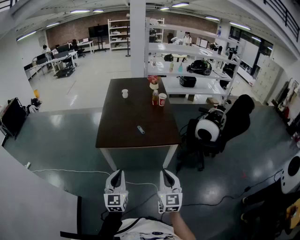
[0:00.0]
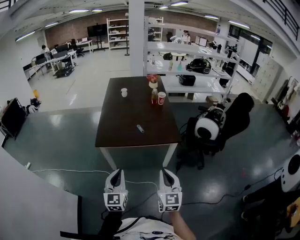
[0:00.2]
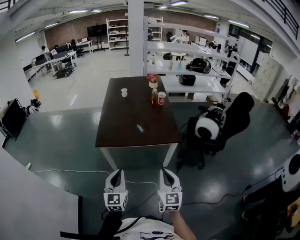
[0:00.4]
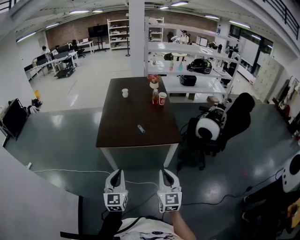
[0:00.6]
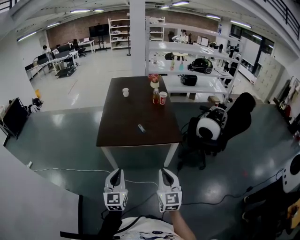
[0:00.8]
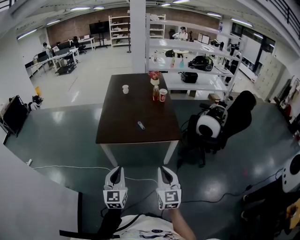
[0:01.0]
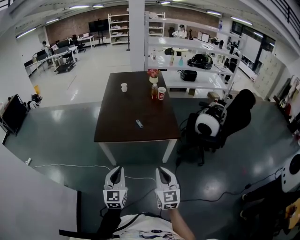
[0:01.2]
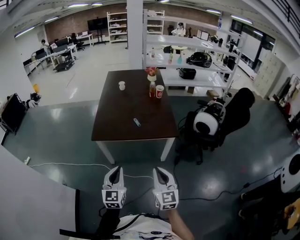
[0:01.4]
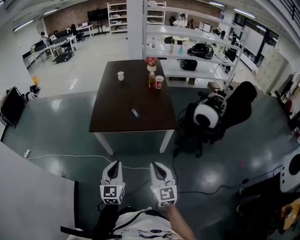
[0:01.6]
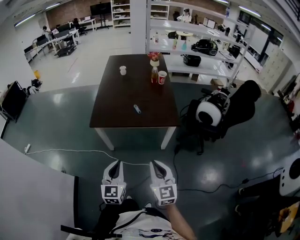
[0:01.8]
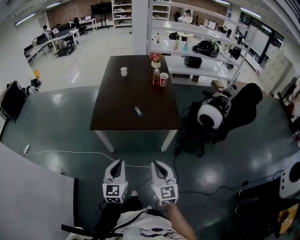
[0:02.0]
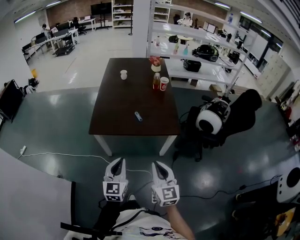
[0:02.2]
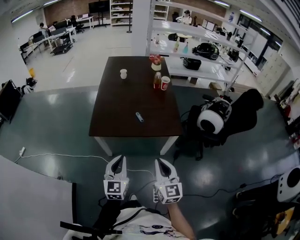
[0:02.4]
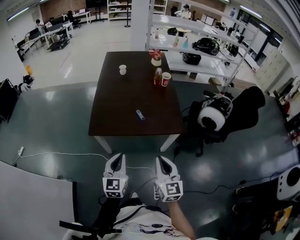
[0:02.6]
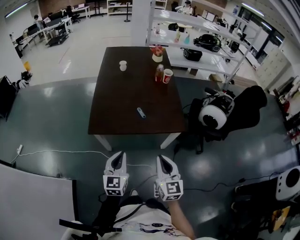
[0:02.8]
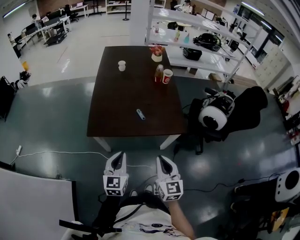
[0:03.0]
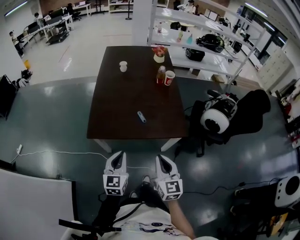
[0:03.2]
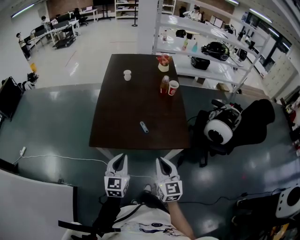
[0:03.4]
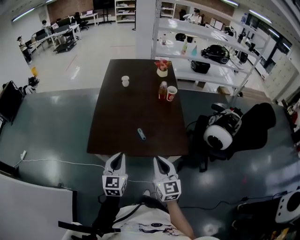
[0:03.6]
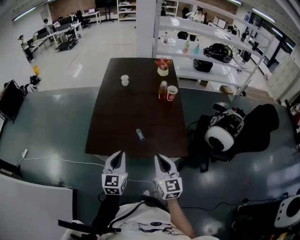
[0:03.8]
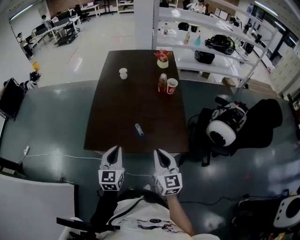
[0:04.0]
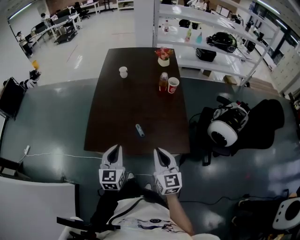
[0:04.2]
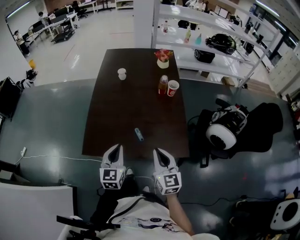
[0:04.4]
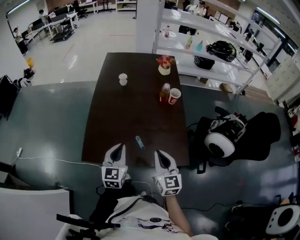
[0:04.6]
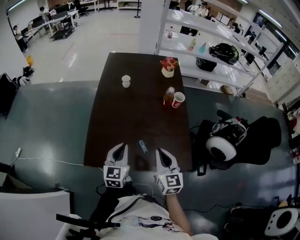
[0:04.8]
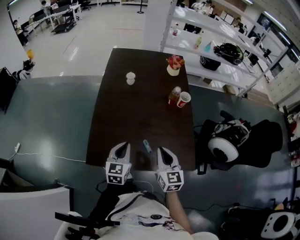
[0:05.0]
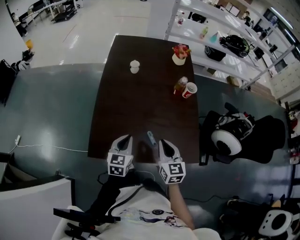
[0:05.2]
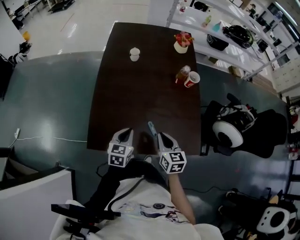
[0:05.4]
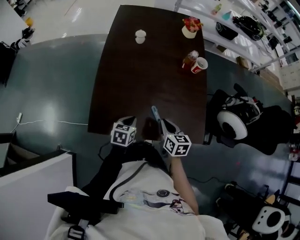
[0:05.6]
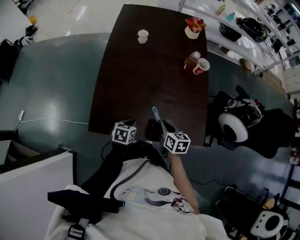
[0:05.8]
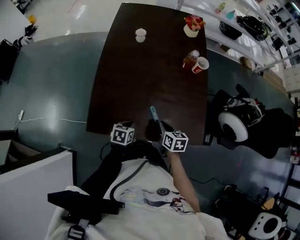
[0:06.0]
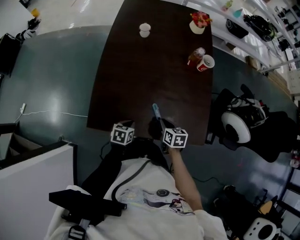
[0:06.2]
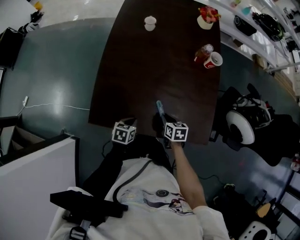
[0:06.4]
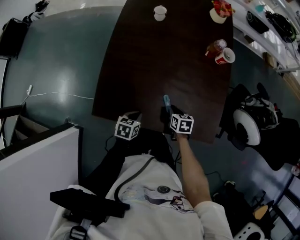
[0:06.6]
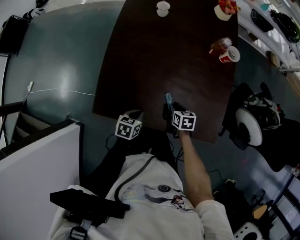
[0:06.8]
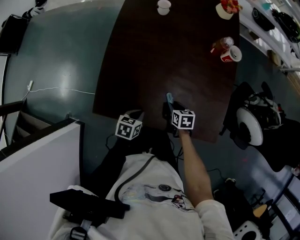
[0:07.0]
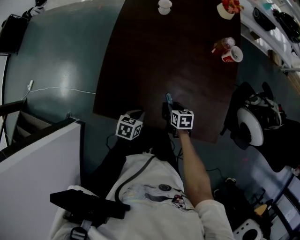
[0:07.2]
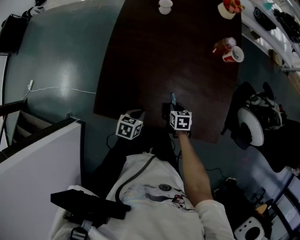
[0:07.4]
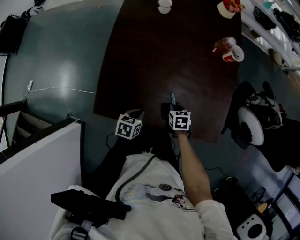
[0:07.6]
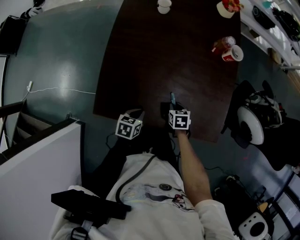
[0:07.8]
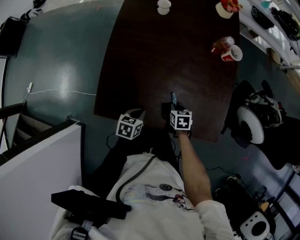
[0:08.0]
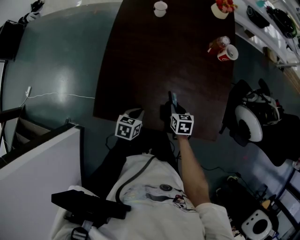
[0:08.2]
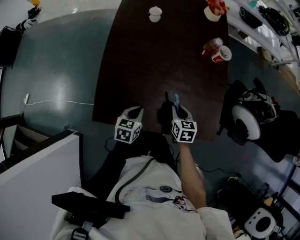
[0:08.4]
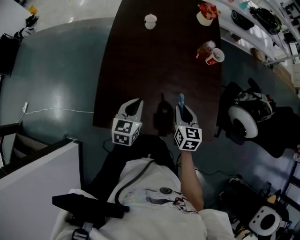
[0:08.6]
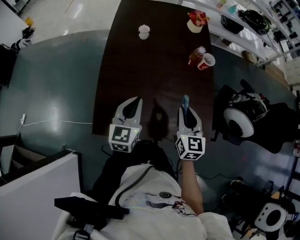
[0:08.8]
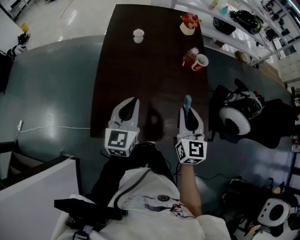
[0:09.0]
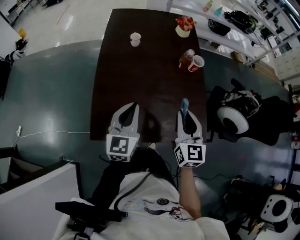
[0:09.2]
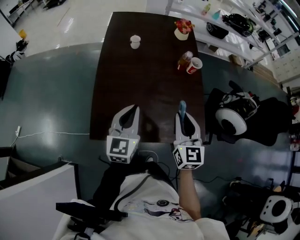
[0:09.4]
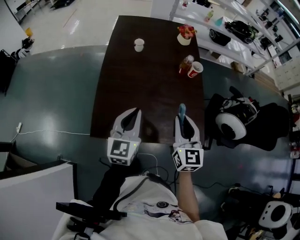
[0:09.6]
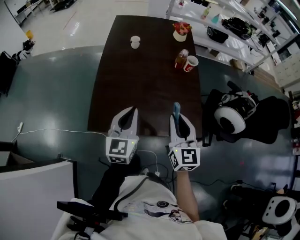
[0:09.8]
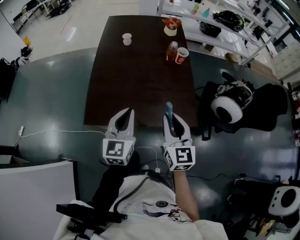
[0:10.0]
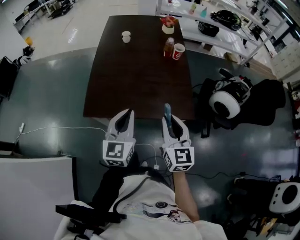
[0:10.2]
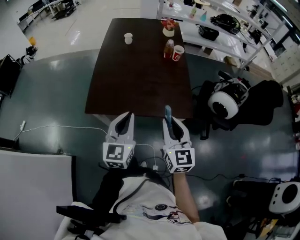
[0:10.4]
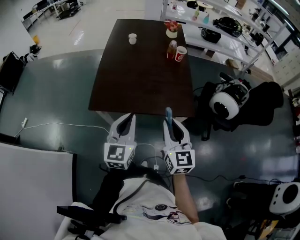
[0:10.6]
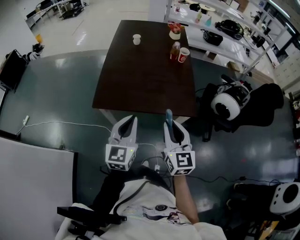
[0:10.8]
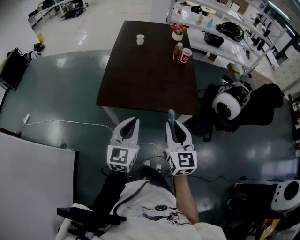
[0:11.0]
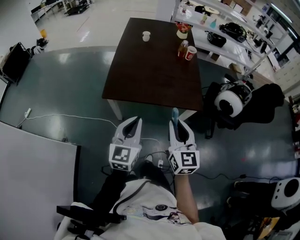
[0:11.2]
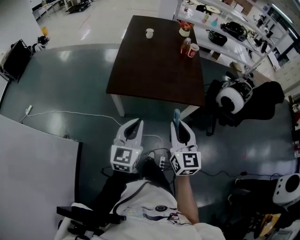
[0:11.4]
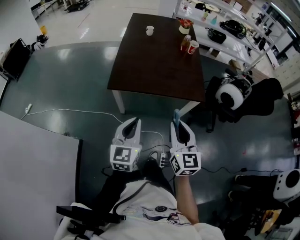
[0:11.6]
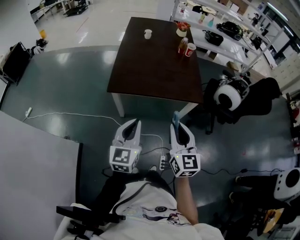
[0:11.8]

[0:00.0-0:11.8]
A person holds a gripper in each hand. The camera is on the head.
0:00.0 to 0:01.4: The grippers make only small movements.
0:01.4 to 0:03.0: The grippers both shift forward by about 15 cm.
0:03.0 to 0:04.4: The grippers both shift forward by some 20 cm.
0:04.4 to 0:06.0: The left gripper moves downward, approximately 20 cm, and tips its fingers downward by approximately 40 degrees. Meanwhile the right gripper shifts about 20 cm downward and forward, and tips its fingers downward by roughly 30 degrees.
0:06.0 to 0:07.4: The right gripper travels downward by roughly 10 cm, and changes its angle by about 20 degrees.
0:07.4 to 0:08.8: The right gripper heads upward, covering roughly 30 cm, and points its fingers roughly 40 degrees further upward. The left gripper moves upward and forward, about 25 cm, and tips its fingers upward by about 40 degrees.
0:08.8 to 0:10.4: Both grippers travel together backward, approximately 25 cm.
0:10.4 to 0:11.8: The two grippers go some 20 cm backward and to the left.

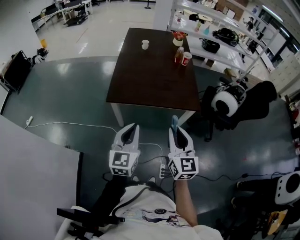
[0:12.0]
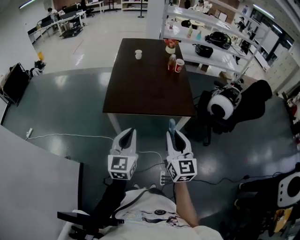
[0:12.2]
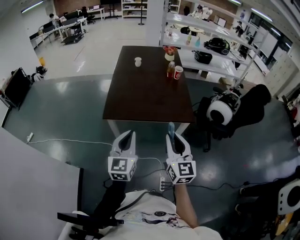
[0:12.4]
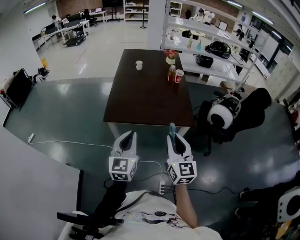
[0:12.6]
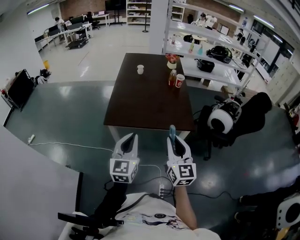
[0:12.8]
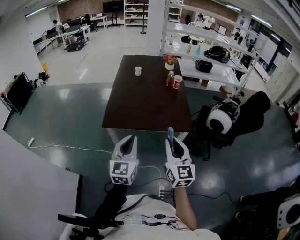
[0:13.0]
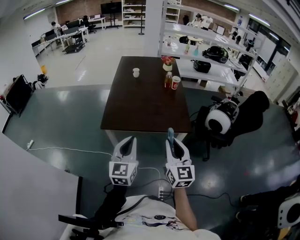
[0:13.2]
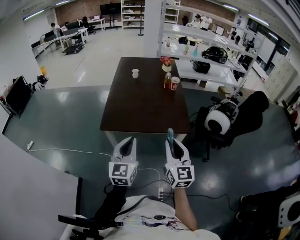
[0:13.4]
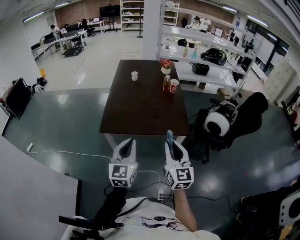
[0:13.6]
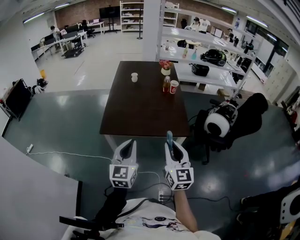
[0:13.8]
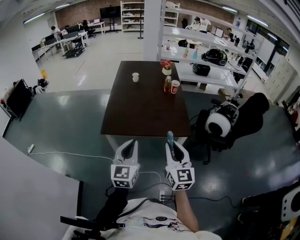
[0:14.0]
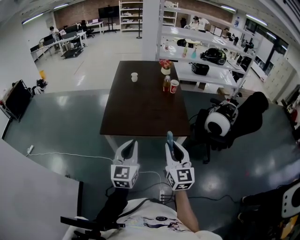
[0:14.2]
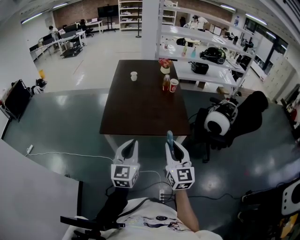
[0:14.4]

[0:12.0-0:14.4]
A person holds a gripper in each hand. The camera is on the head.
0:12.0 to 0:13.2: The right gripper moves roughly 5 cm; the left gripper ends up about 5 cm from where it was.
0:13.2 to 0:14.4: The grippers stay close to where they were, moving slightly.

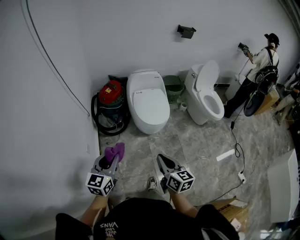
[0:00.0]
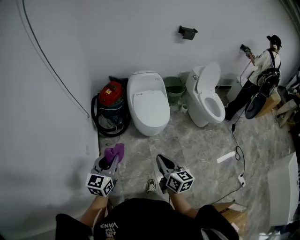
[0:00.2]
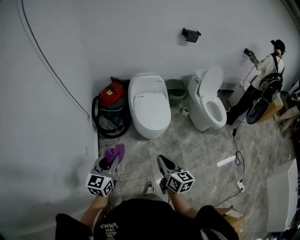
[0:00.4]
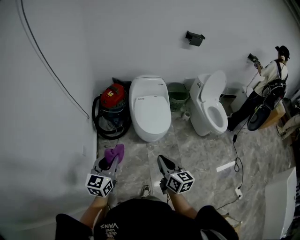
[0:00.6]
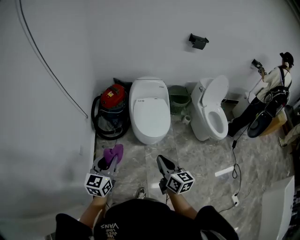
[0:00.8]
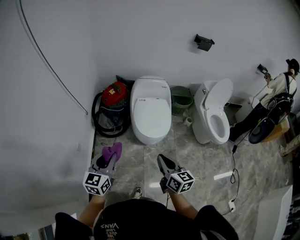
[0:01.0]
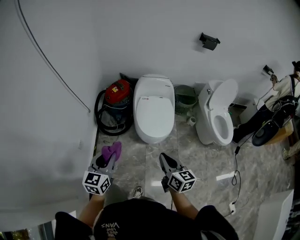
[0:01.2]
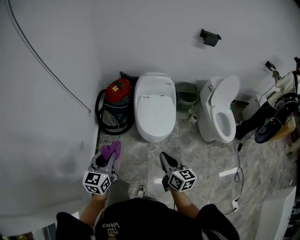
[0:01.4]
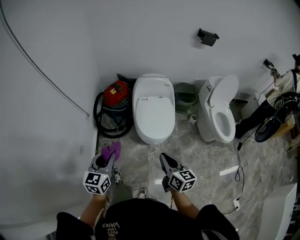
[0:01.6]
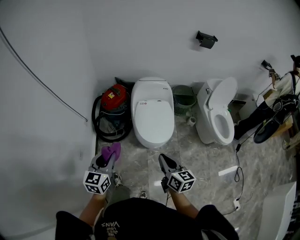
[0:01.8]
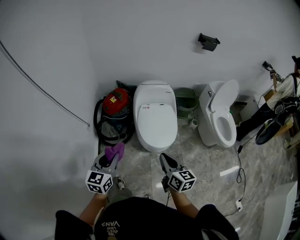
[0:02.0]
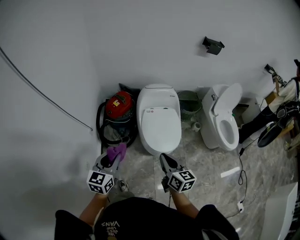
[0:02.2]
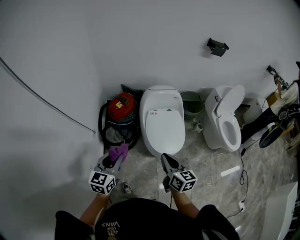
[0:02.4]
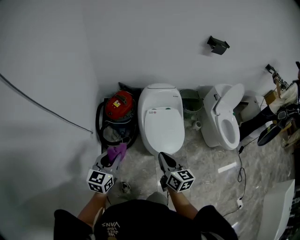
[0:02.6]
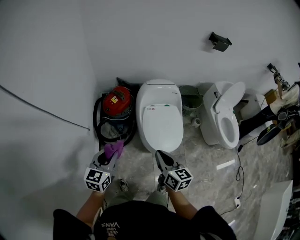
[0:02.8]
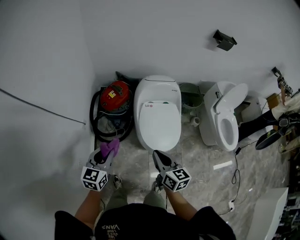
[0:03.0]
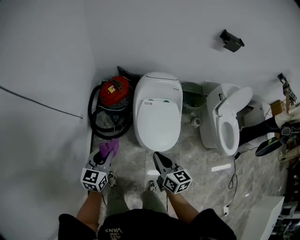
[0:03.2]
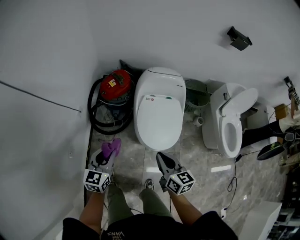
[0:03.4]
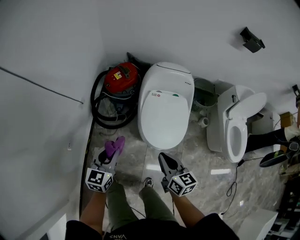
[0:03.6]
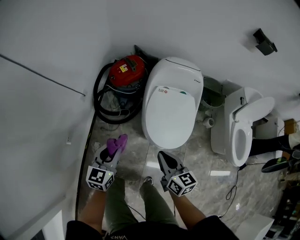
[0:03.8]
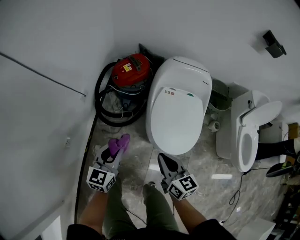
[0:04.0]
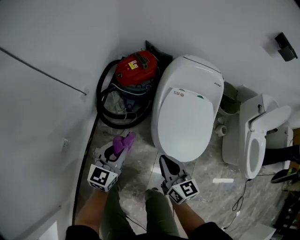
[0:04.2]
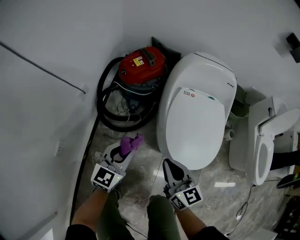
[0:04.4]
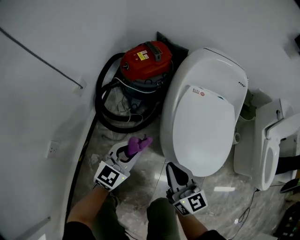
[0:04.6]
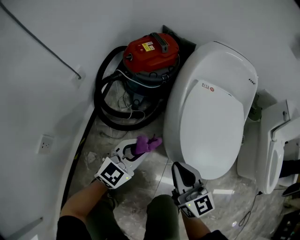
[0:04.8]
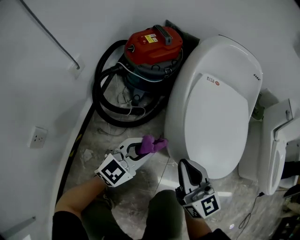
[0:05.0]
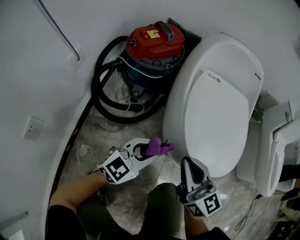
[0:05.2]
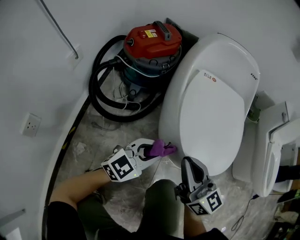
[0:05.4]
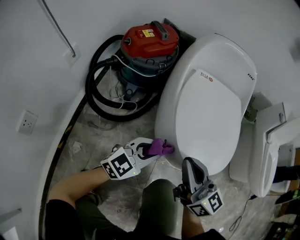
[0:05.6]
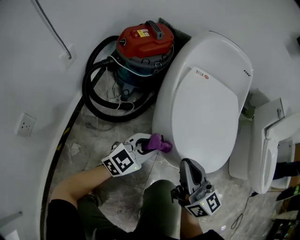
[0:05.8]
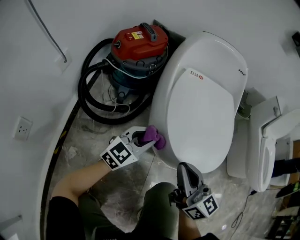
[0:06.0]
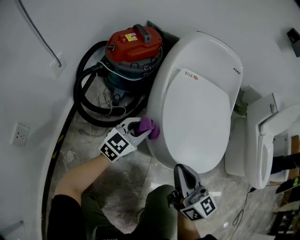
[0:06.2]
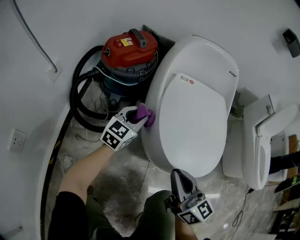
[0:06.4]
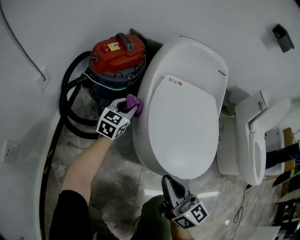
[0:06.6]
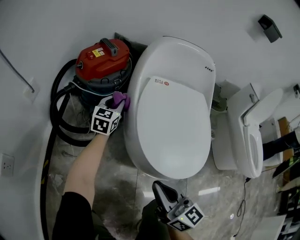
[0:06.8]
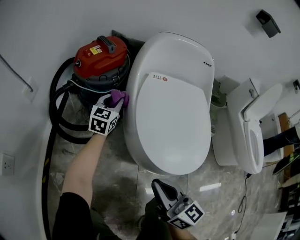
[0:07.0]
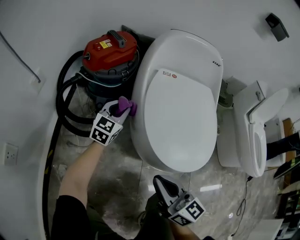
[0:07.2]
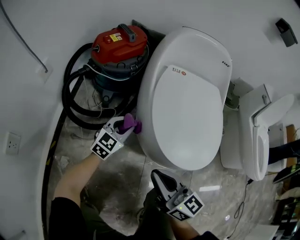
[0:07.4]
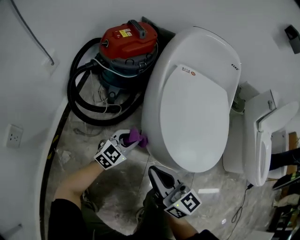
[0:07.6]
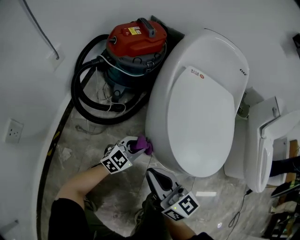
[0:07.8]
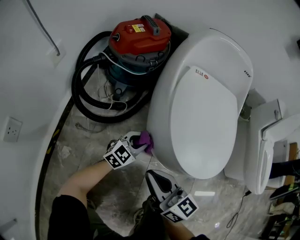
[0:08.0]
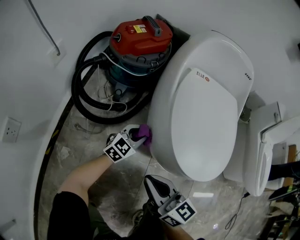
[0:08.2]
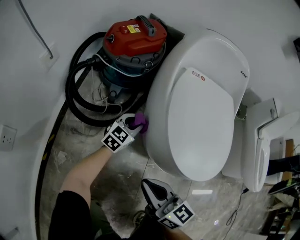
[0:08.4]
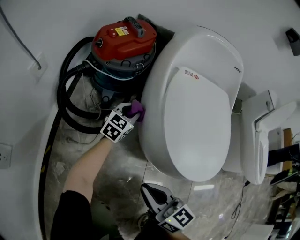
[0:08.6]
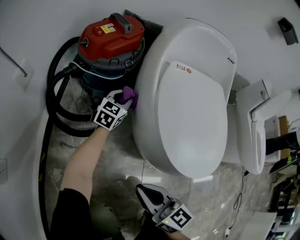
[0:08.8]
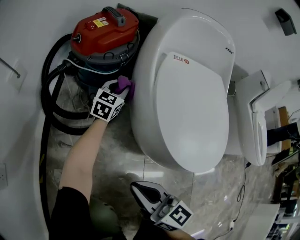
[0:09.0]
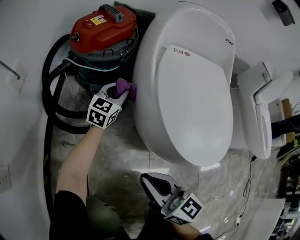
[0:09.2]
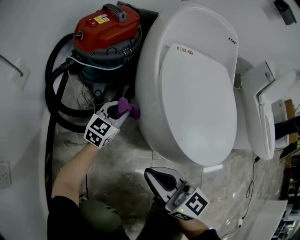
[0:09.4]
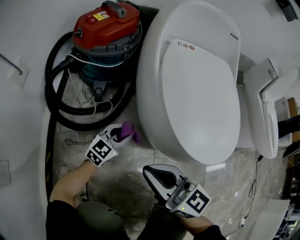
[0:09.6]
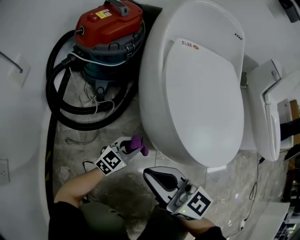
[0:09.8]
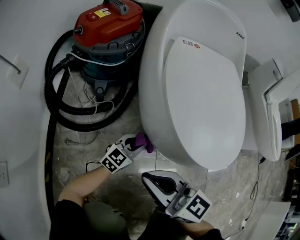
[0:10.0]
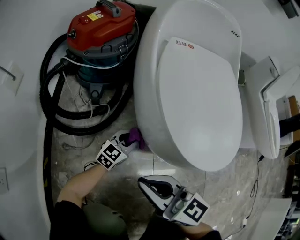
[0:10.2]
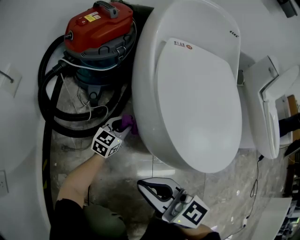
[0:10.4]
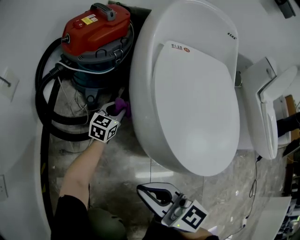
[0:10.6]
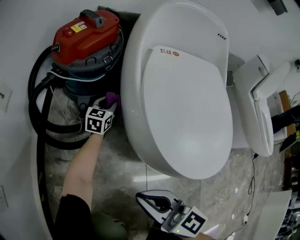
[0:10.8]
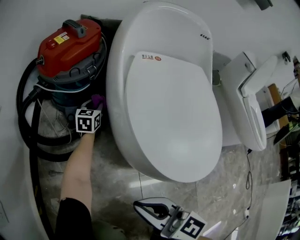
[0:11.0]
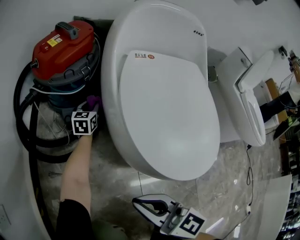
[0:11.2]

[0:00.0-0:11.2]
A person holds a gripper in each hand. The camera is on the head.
0:00.0 to 0:01.6: Both grippers travel together forward and to the right, roughly 20 cm.
0:01.6 to 0:03.2: The two grippers go roughly 20 cm forward.
0:03.2 to 0:04.8: Both grippers travel together downward, some 40 cm. The right gripper rotates roughly 30 degrees; the left gripper turns by about 20 degrees.
0:04.8 to 0:06.4: The right gripper goes roughly 10 cm to the right; the left gripper travels forward and downward by approximately 15 cm.
0:06.4 to 0:08.0: The right gripper goes some 10 cm to the left and downward. Meanwhile the left gripper travels downward and backward by about 15 cm.
0:08.0 to 0:09.6: The left gripper goes forward and returns, some 25 cm each way.
0:09.6 to 0:11.2: The left gripper heads forward, covering some 25 cm, and turns by about 30 degrees.
